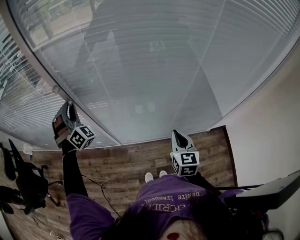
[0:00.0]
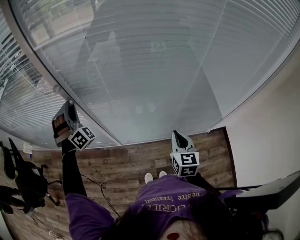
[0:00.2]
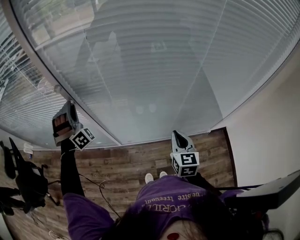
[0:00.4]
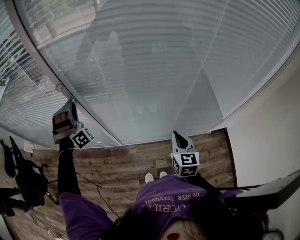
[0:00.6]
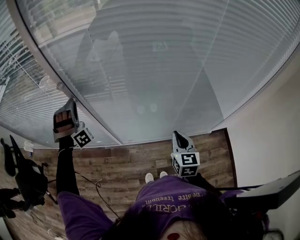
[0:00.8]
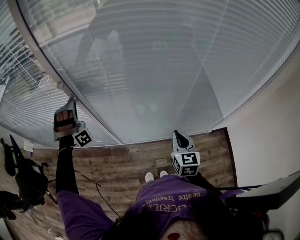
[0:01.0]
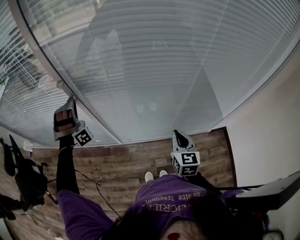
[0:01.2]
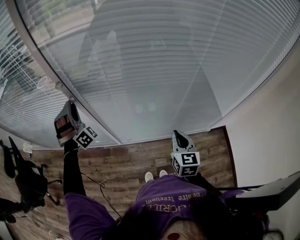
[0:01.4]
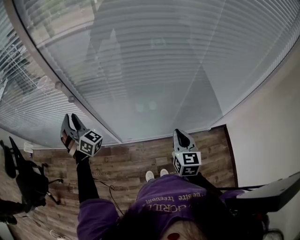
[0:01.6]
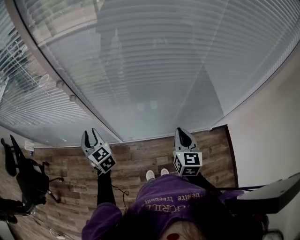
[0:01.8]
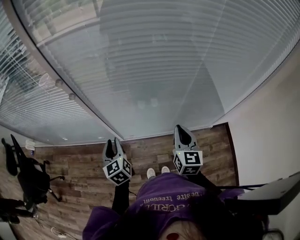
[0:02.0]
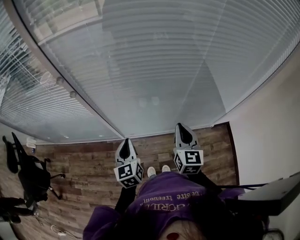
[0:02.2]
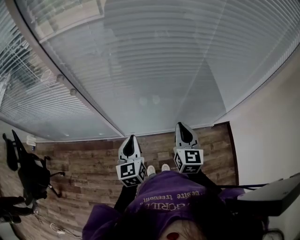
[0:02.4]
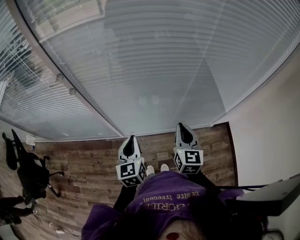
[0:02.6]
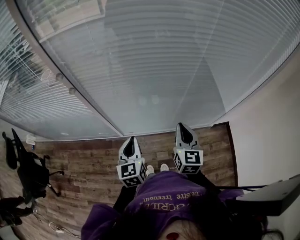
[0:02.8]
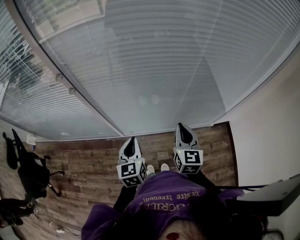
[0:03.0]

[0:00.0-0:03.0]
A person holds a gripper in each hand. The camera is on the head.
0:00.0 to 0:01.6: The left gripper ends up some 5 cm from where it was, and rotates about 20 degrees.
0:01.6 to 0:03.0: The left gripper travels to the right and backward by approximately 30 cm, rotates roughly 70 degrees, and closes up.

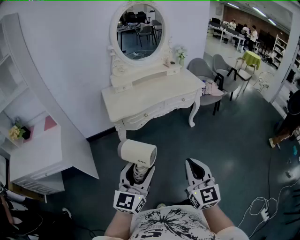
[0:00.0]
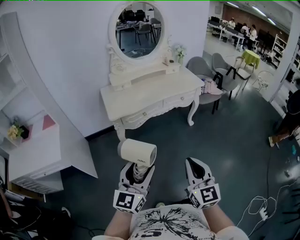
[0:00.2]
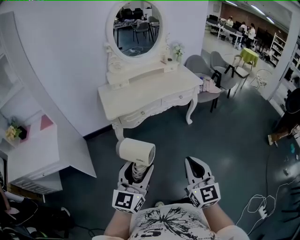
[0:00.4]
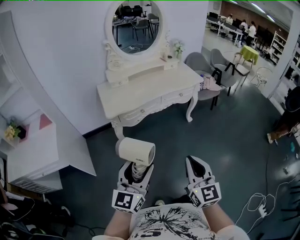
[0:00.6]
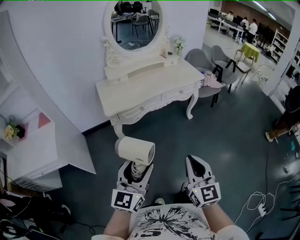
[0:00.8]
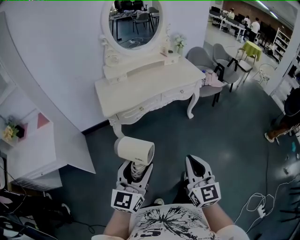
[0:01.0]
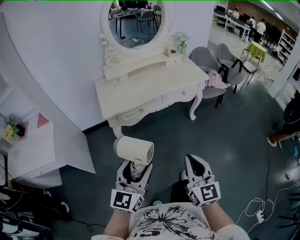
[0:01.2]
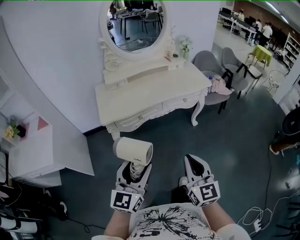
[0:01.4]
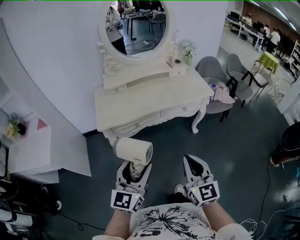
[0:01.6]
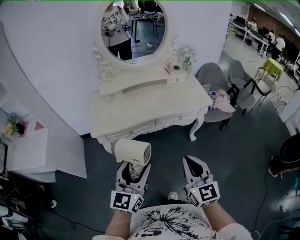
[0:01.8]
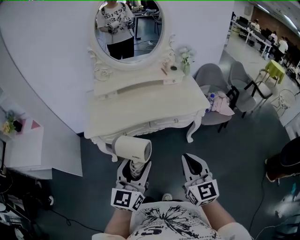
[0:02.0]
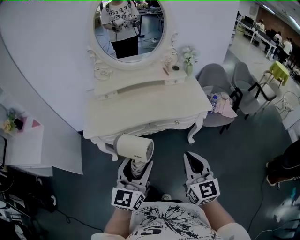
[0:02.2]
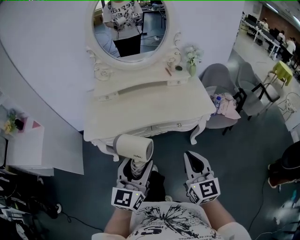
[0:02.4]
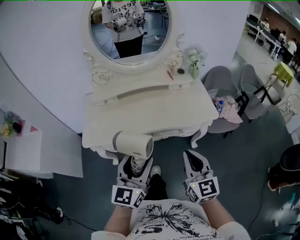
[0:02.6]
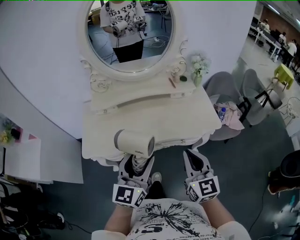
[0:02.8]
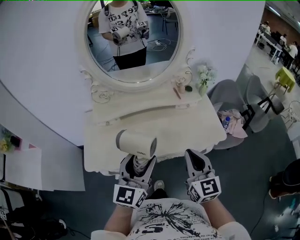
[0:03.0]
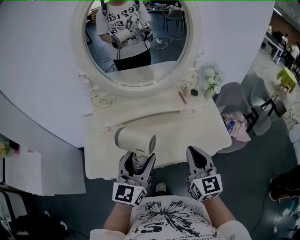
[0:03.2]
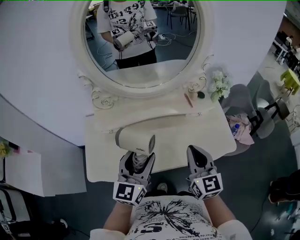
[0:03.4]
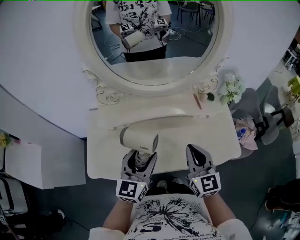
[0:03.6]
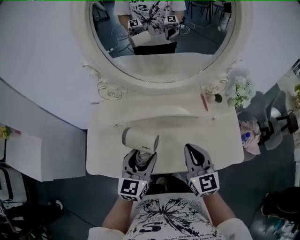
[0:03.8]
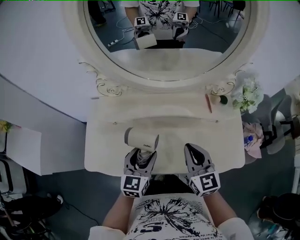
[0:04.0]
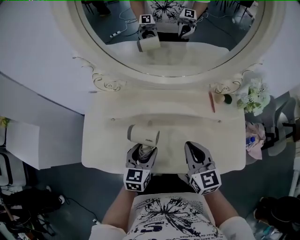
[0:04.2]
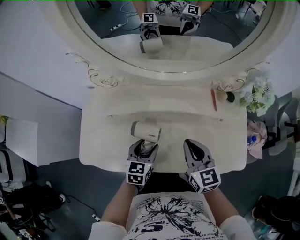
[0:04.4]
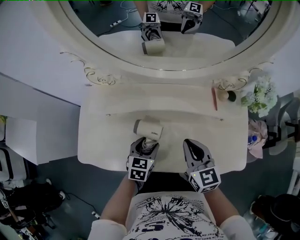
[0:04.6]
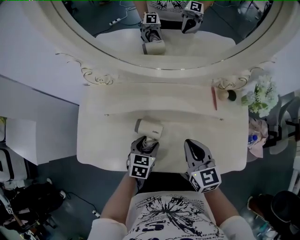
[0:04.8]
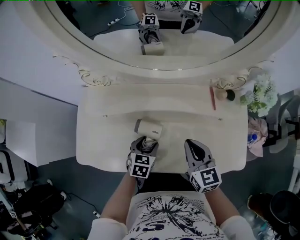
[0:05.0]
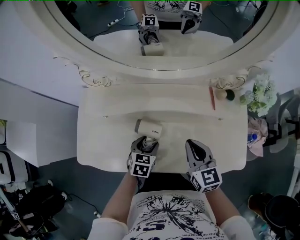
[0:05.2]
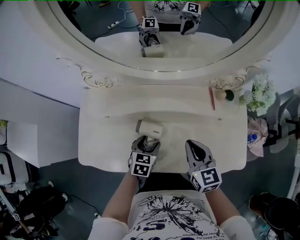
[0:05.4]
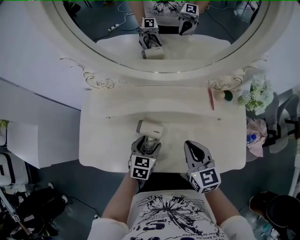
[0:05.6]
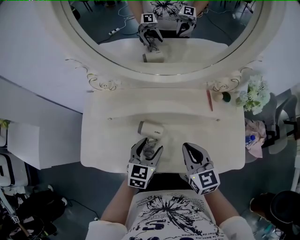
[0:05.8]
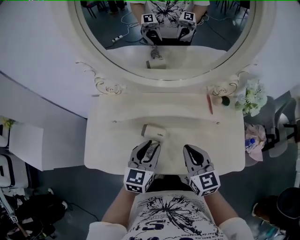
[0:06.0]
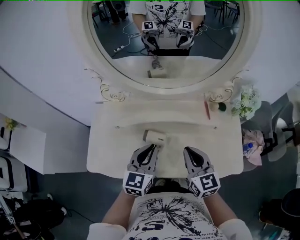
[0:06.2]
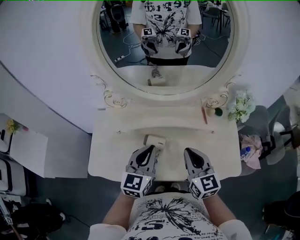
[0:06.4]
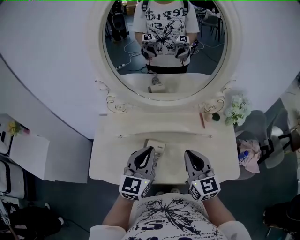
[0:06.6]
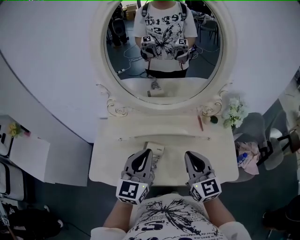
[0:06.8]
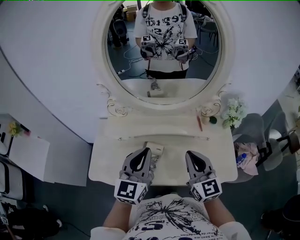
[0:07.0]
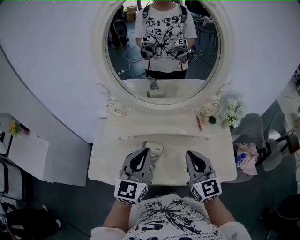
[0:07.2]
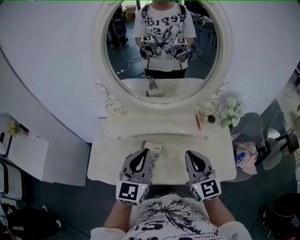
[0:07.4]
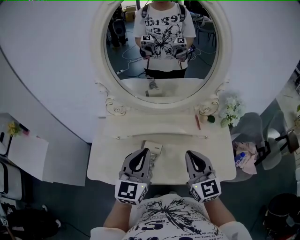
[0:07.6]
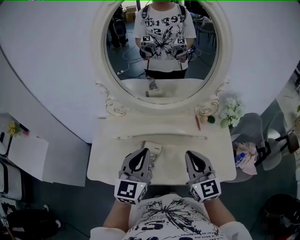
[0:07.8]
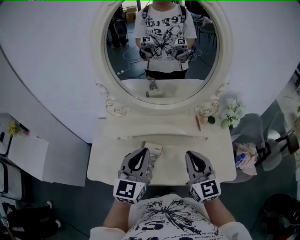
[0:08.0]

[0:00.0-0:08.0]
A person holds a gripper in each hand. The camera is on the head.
0:00.0 to 0:01.6: Both grippers move forward, some 25 cm.
0:01.6 to 0:03.2: Both grippers are carried forward, roughly 40 cm.
0:03.2 to 0:04.8: The left gripper moves downward and forward, approximately 35 cm, and angles its fingers downward, by some 50 degrees. The right gripper heads forward and downward, covering some 20 cm, and turns by approximately 30 degrees.
0:04.8 to 0:06.4: The left gripper is displaced upward by about 25 cm, angles its fingers upward, by roughly 30 degrees, and closes up. The right gripper shifts approximately 10 cm upward.
0:06.4 to 0:08.0: Both grippers move upward, approximately 5 cm.

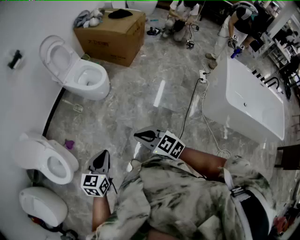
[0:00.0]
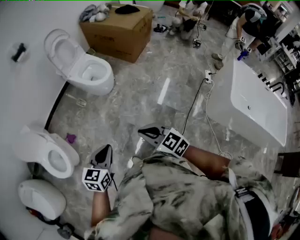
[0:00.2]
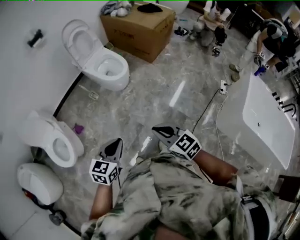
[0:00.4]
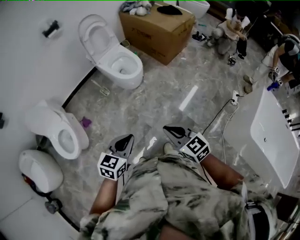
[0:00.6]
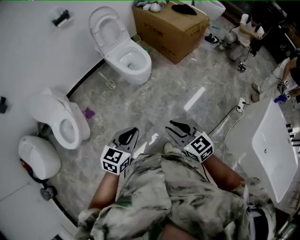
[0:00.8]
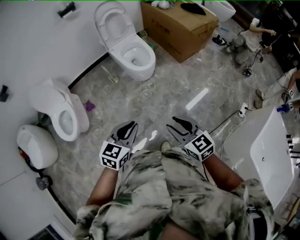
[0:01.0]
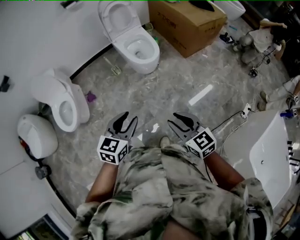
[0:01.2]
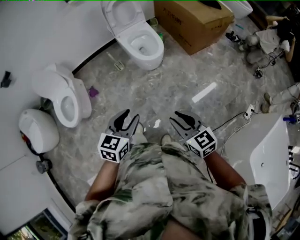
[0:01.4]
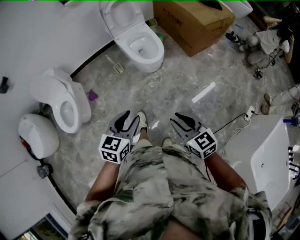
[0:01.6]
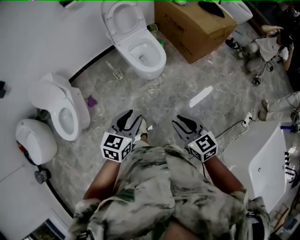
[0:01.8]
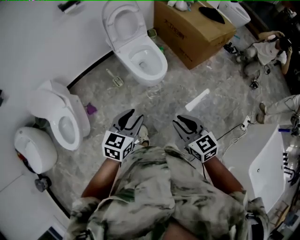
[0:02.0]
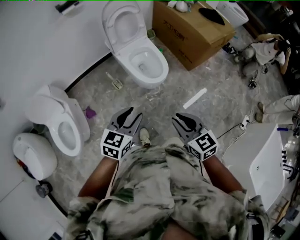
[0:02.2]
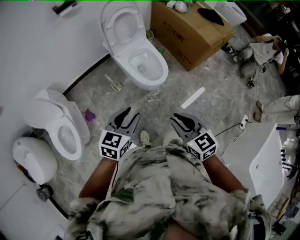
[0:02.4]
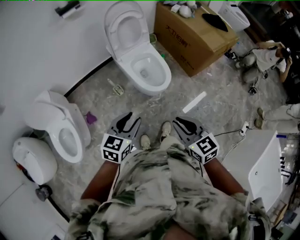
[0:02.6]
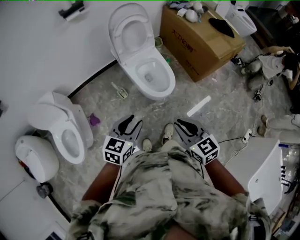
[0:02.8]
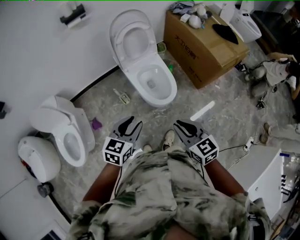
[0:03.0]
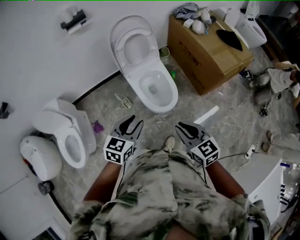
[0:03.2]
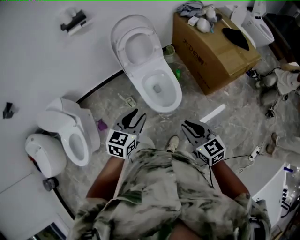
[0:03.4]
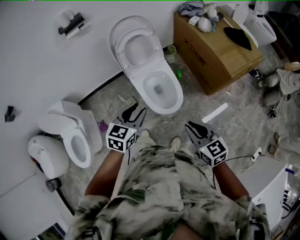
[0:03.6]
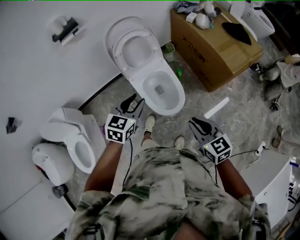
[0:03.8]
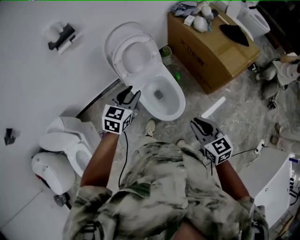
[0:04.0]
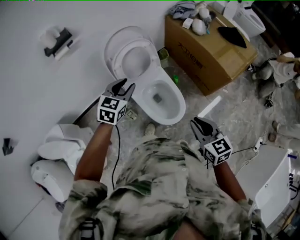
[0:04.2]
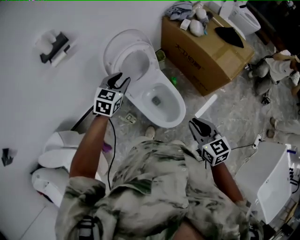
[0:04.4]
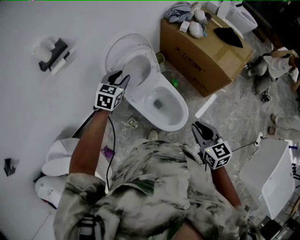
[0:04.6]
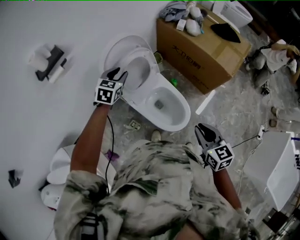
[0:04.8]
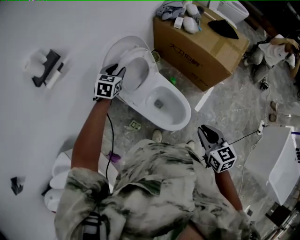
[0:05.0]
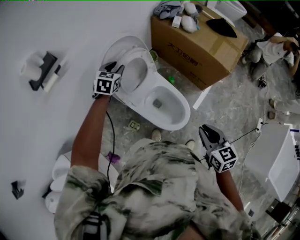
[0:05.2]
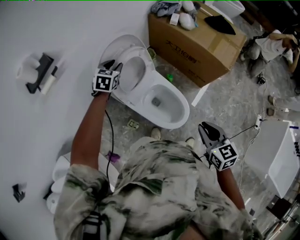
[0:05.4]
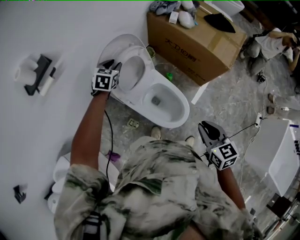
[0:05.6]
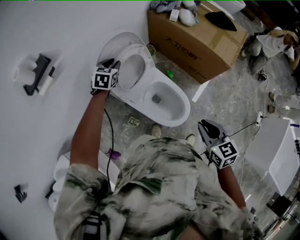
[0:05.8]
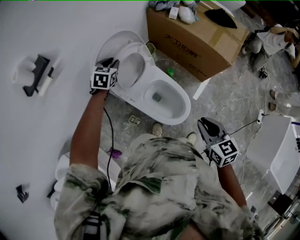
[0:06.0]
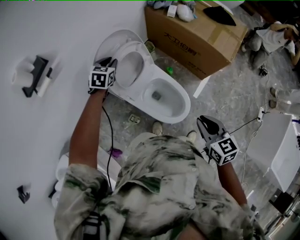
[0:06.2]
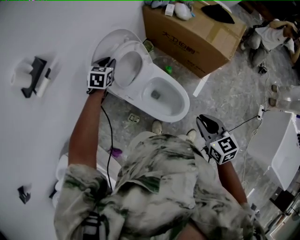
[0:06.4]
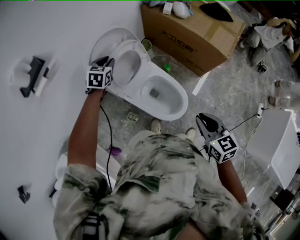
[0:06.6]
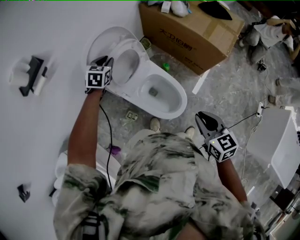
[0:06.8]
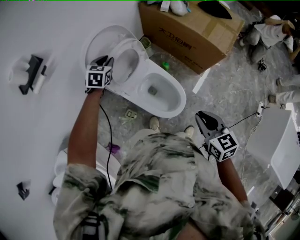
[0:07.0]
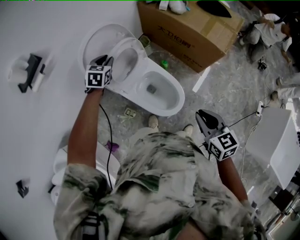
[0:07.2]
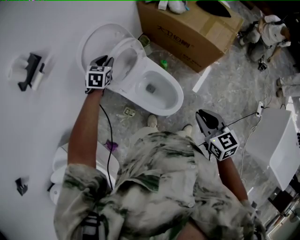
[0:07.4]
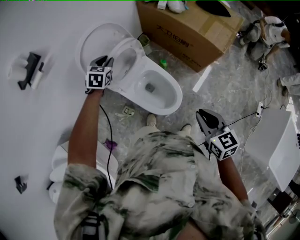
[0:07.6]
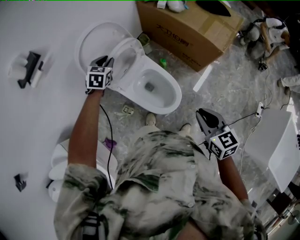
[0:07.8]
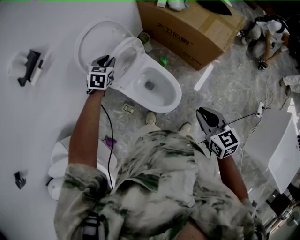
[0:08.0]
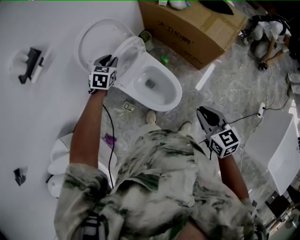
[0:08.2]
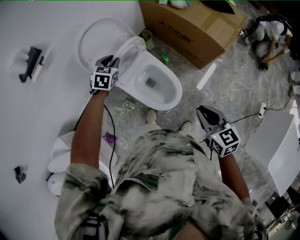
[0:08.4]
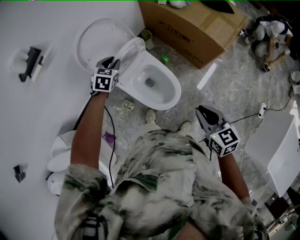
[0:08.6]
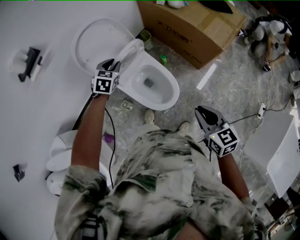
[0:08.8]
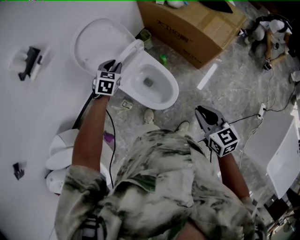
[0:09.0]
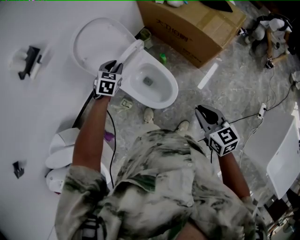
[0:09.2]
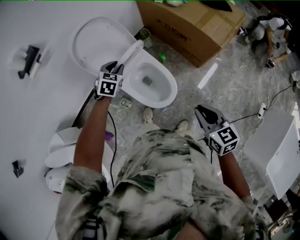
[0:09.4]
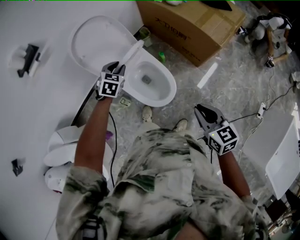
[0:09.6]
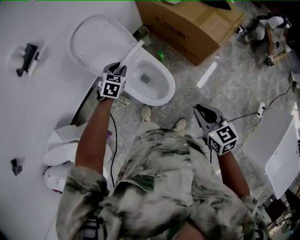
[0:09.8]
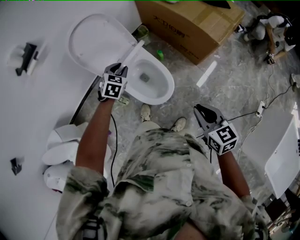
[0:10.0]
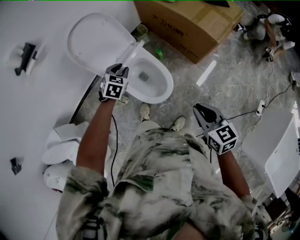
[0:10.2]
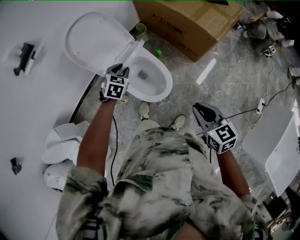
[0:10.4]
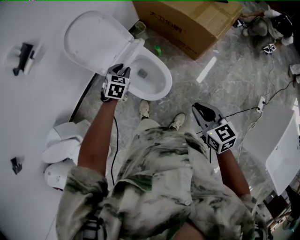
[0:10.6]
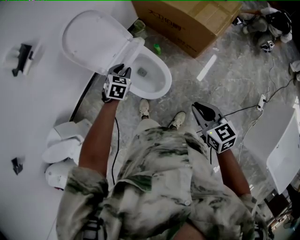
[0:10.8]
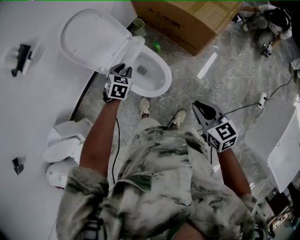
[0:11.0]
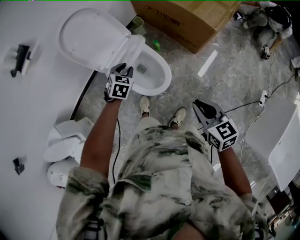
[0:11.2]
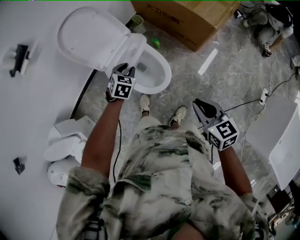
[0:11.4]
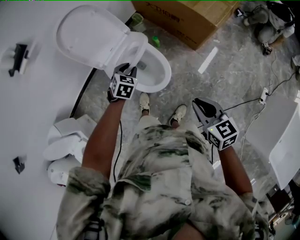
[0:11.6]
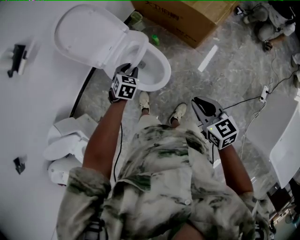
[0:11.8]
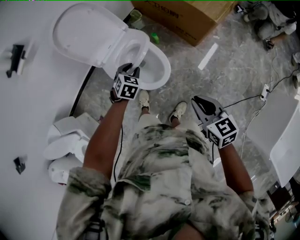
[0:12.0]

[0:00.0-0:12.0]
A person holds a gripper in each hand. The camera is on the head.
0:00.0 to 0:01.6: Both grippers travel together forward and to the right, some 25 cm. The left gripper opens; the right gripper opens.
0:01.6 to 0:03.0: Both grippers move forward, approximately 35 cm.
0:03.0 to 0:04.4: The left gripper is displaced forward by roughly 50 cm, while the right gripper moves forward, approximately 25 cm.
0:04.4 to 0:06.0: The right gripper moves some 5 cm, while the left gripper heads forward and downward, covering roughly 20 cm.
0:06.0 to 0:07.6: The left gripper heads to the right and backward, covering roughly 10 cm, while the right gripper heads to the right, covering approximately 10 cm.
0:07.6 to 0:09.0: The left gripper goes some 10 cm backward and to the right; the right gripper is displaced to the right by roughly 5 cm.
0:09.0 to 0:10.4: The right gripper shifts by approximately 5 cm. The left gripper goes roughly 10 cm backward and to the right.
0:10.4 to 0:12.0: The left gripper is displaced backward, downward and to the right by about 10 cm.
